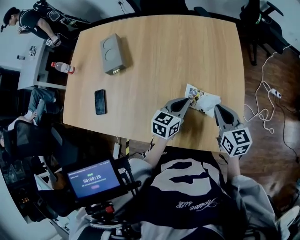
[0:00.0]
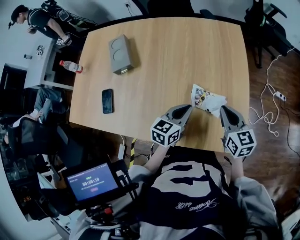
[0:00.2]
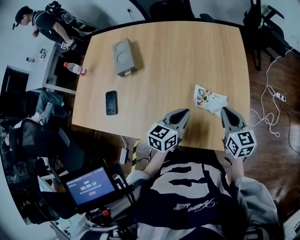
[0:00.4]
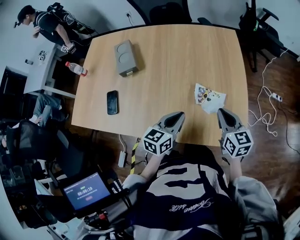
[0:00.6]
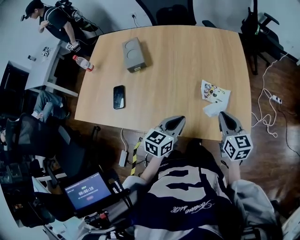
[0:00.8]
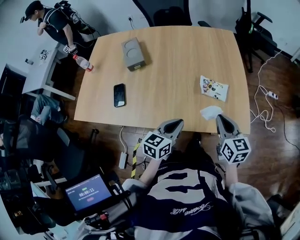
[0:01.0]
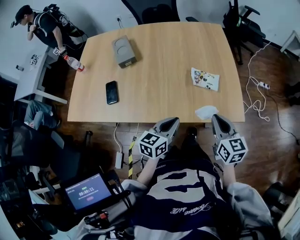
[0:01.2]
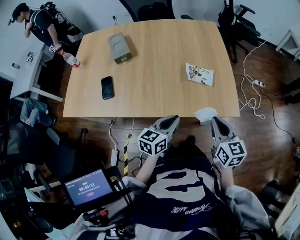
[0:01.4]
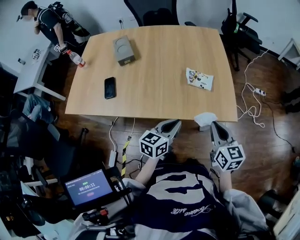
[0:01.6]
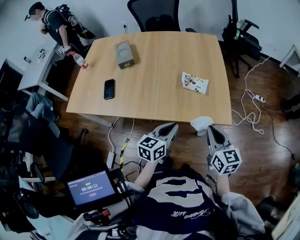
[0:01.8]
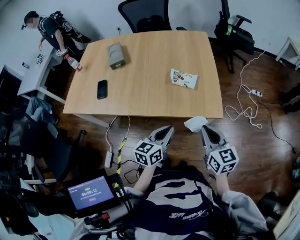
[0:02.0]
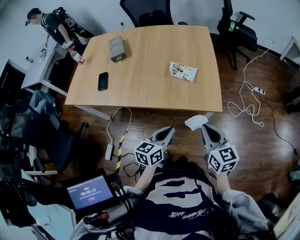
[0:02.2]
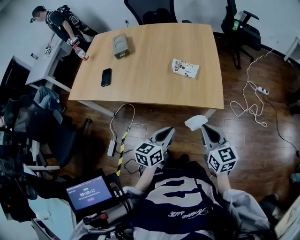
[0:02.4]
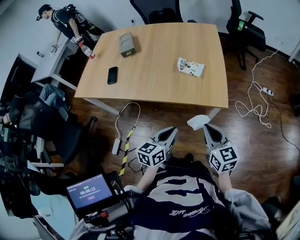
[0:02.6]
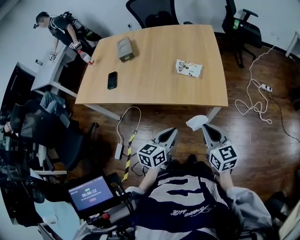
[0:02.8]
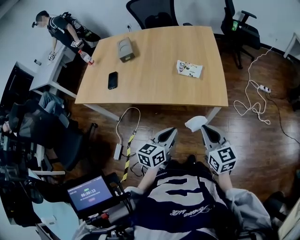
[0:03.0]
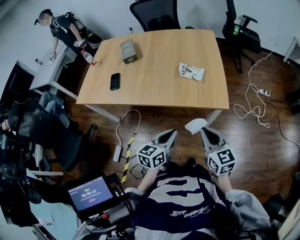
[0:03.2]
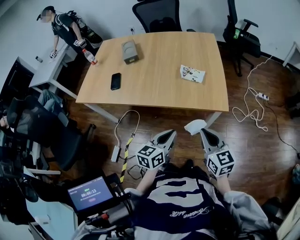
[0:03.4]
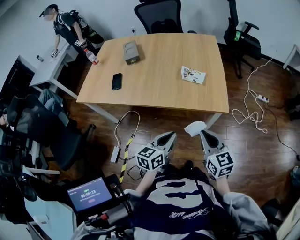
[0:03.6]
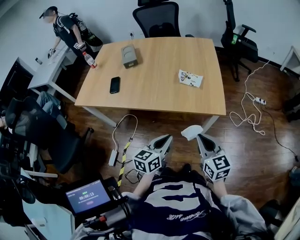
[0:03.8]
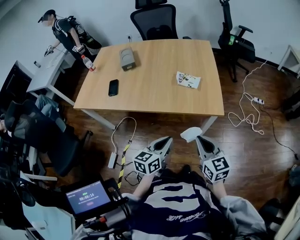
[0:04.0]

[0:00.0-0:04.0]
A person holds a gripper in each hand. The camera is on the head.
0:00.0 to 0:01.4: The two grippers go about 25 cm backward.
0:01.4 to 0:02.6: The two grippers go some 20 cm backward and to the right.
0:02.6 to 0:04.0: The grippers make only small movements.

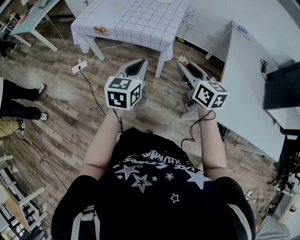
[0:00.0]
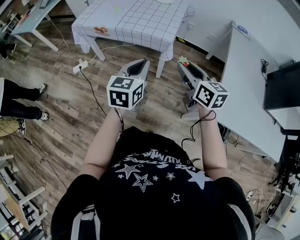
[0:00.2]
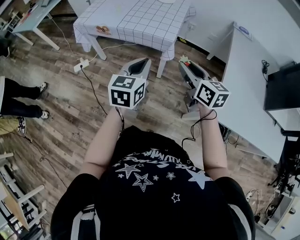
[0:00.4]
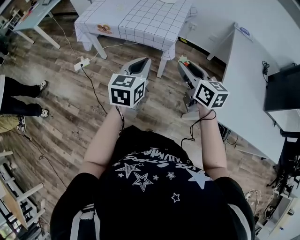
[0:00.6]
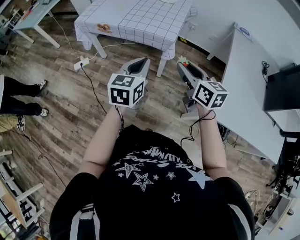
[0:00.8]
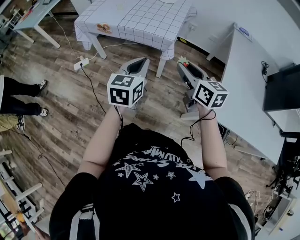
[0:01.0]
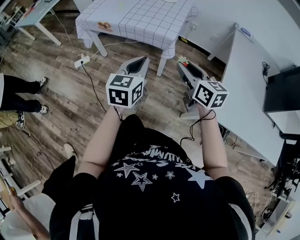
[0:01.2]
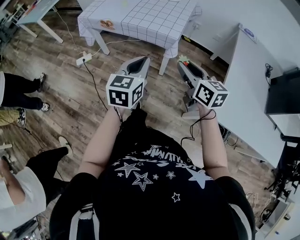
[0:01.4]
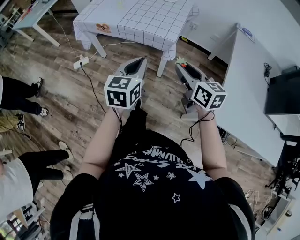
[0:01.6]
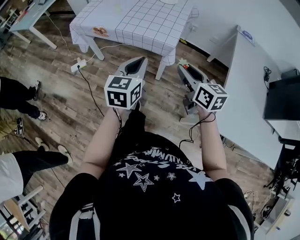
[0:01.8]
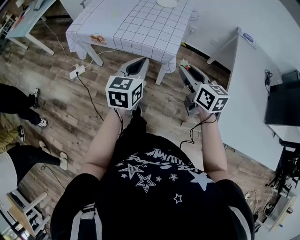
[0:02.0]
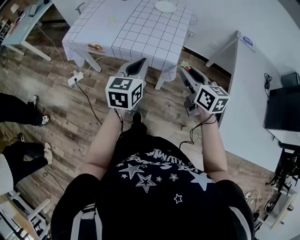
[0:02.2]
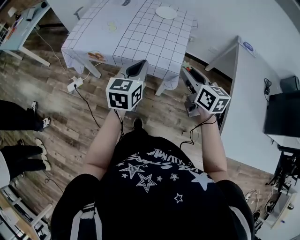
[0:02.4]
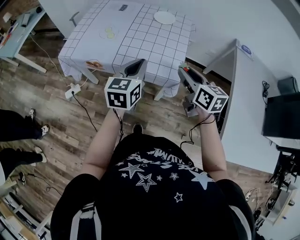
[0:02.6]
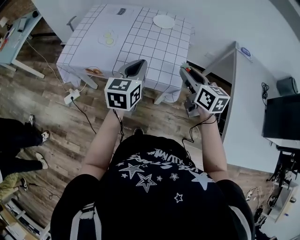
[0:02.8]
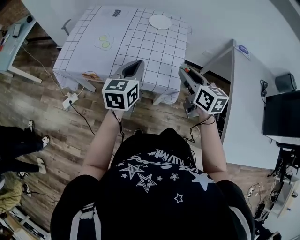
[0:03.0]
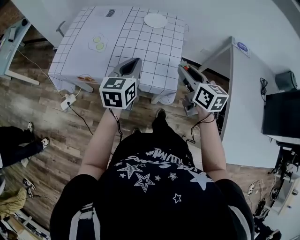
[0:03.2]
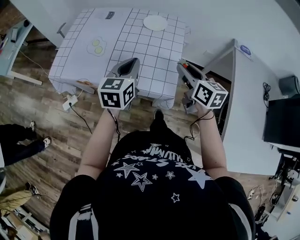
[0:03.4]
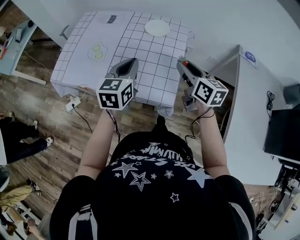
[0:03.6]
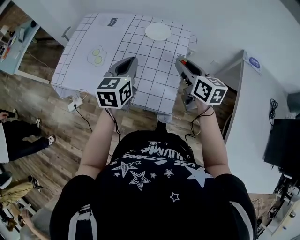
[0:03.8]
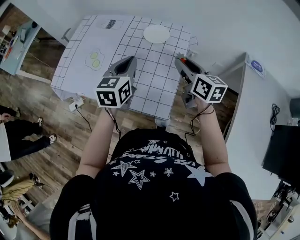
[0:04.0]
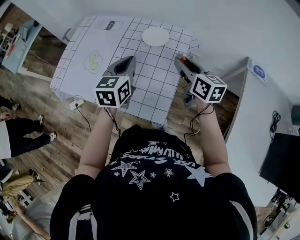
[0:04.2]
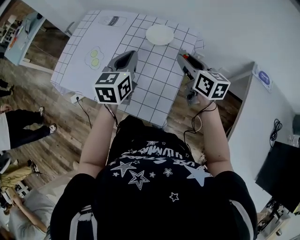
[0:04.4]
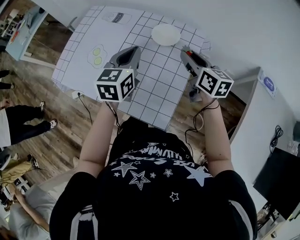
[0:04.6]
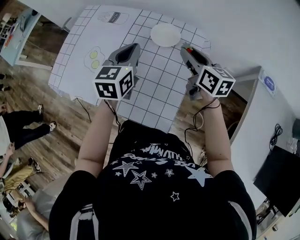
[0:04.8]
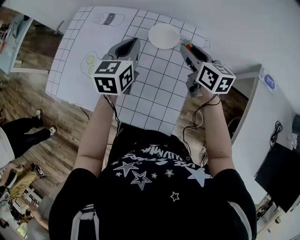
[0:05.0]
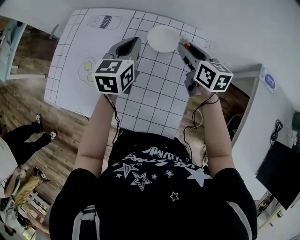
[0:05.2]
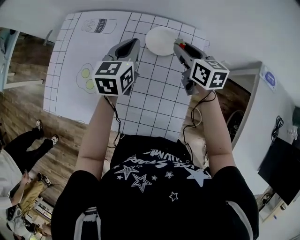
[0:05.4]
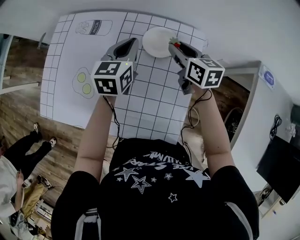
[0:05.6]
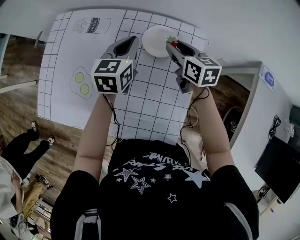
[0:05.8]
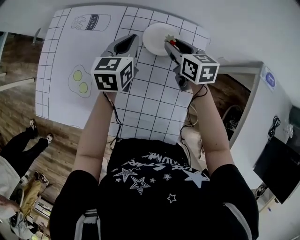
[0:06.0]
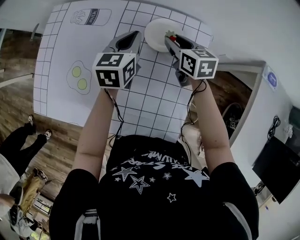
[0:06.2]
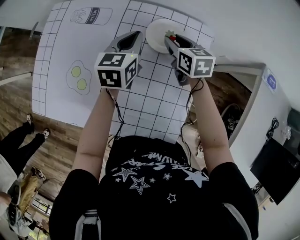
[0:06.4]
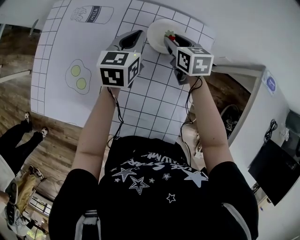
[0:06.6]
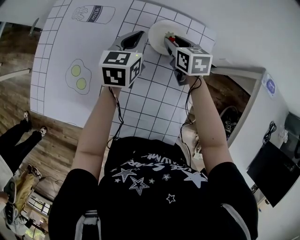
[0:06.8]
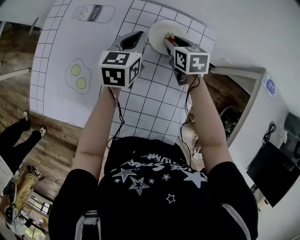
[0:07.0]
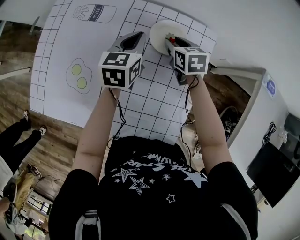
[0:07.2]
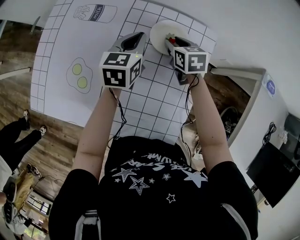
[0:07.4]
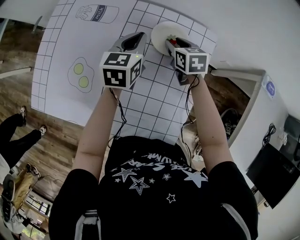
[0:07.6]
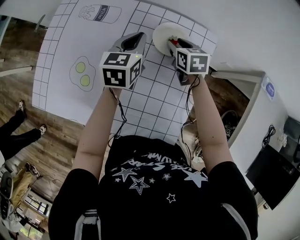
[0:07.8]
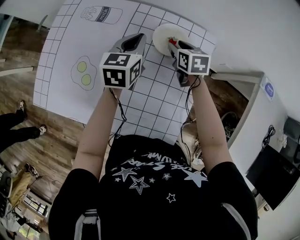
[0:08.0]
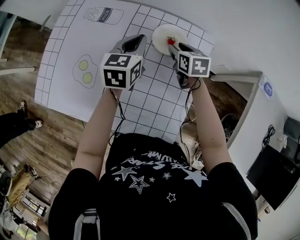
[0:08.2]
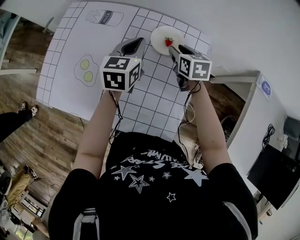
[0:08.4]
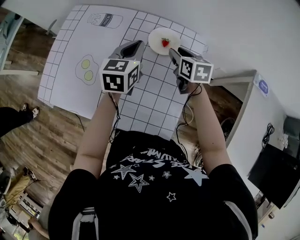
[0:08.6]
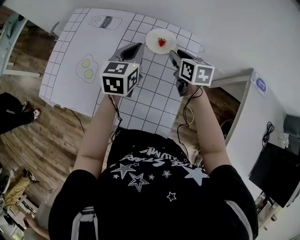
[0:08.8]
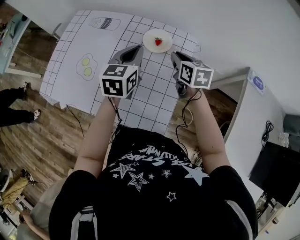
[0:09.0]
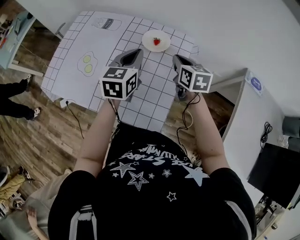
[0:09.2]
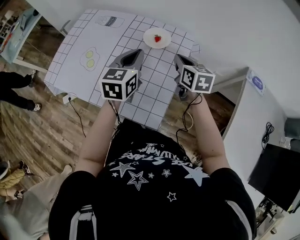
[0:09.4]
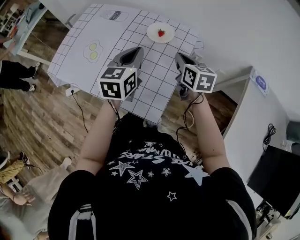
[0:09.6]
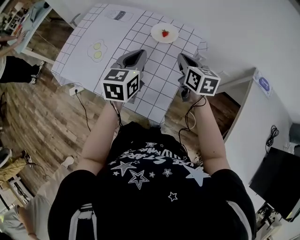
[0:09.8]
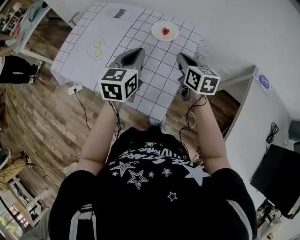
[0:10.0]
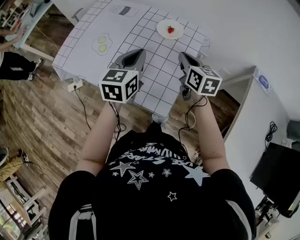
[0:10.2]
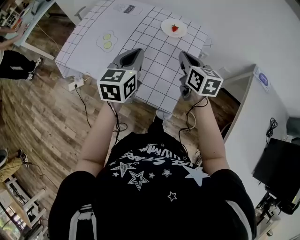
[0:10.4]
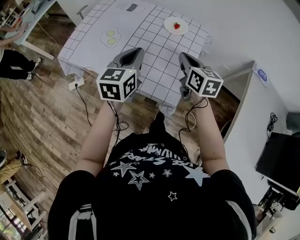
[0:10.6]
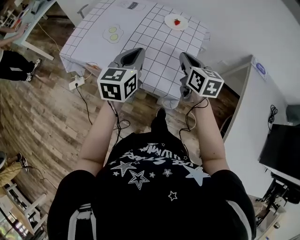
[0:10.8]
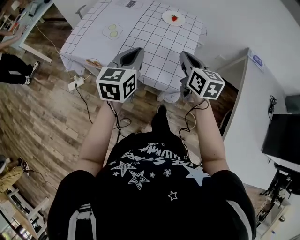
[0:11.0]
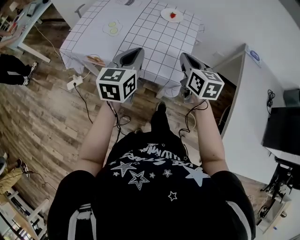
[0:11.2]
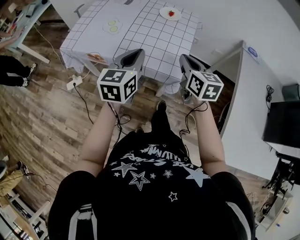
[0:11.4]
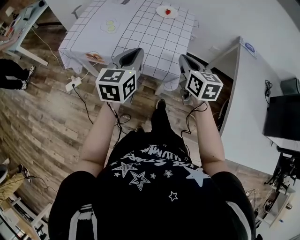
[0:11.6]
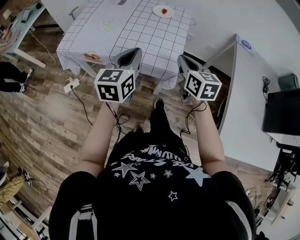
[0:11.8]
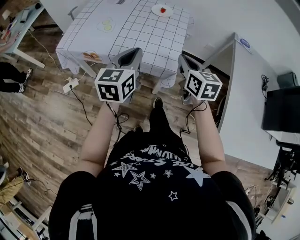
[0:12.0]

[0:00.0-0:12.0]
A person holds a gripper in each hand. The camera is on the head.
0:00.0 to 0:01.6: The grippers make only small movements.
0:01.6 to 0:03.0: The left gripper moves forward and backward over roughly 15 cm, changing direction 2 times, while the right gripper travels upward and to the left by about 15 cm.
0:03.0 to 0:04.4: The right gripper goes some 25 cm forward, while the left gripper is displaced forward and to the right by about 20 cm.
0:04.4 to 0:06.0: Both grippers travel together forward and downward, some 20 cm.
0:06.0 to 0:07.6: The right gripper is displaced downward by about 5 cm.
0:07.6 to 0:09.0: The right gripper is displaced upward, backward and to the right by approximately 20 cm. Meanwhile the left gripper goes some 15 cm backward and upward.
0:09.0 to 0:10.4: The two grippers go about 15 cm backward.
0:10.4 to 0:12.0: Both grippers move backward, some 20 cm.

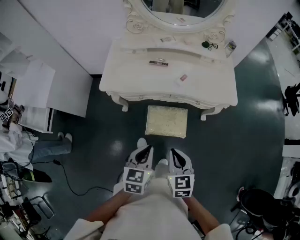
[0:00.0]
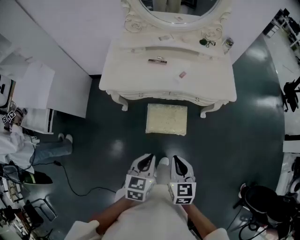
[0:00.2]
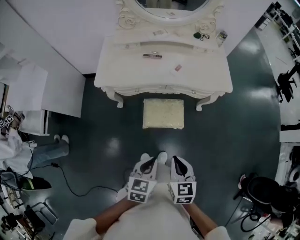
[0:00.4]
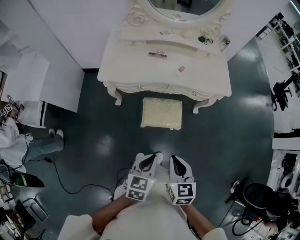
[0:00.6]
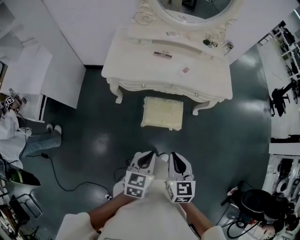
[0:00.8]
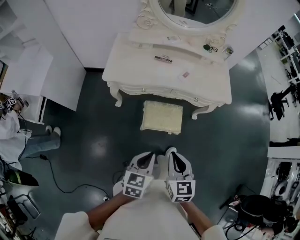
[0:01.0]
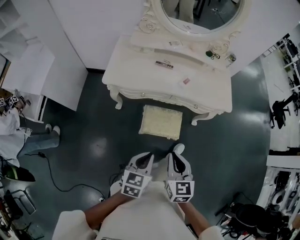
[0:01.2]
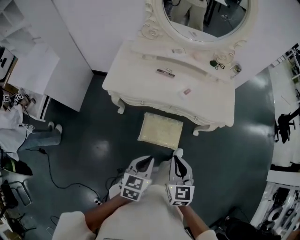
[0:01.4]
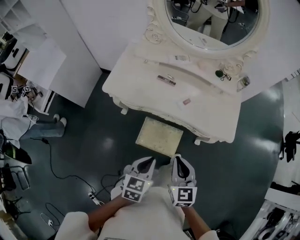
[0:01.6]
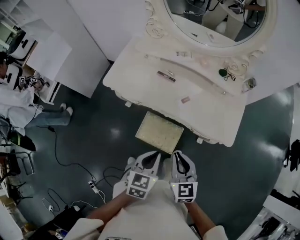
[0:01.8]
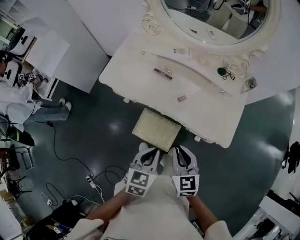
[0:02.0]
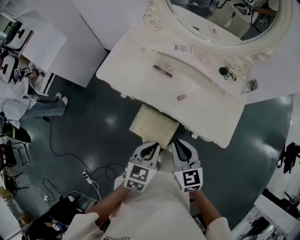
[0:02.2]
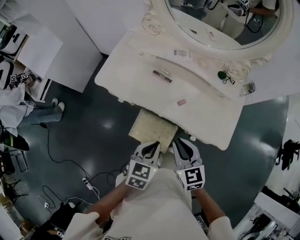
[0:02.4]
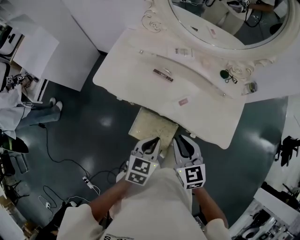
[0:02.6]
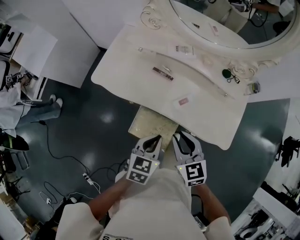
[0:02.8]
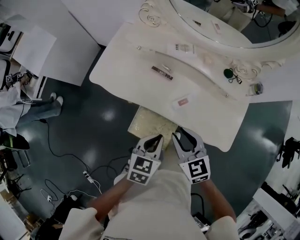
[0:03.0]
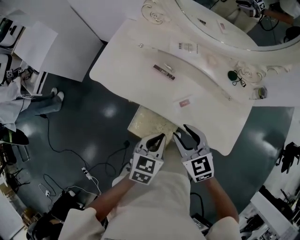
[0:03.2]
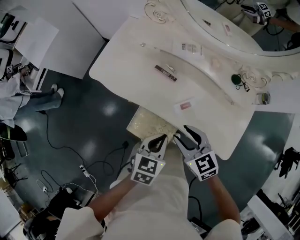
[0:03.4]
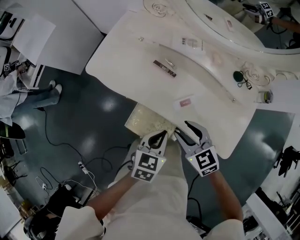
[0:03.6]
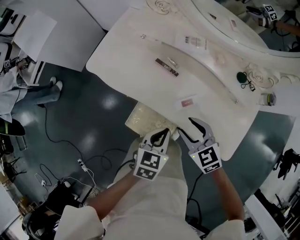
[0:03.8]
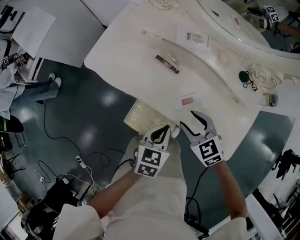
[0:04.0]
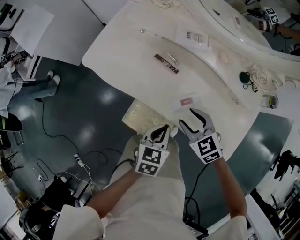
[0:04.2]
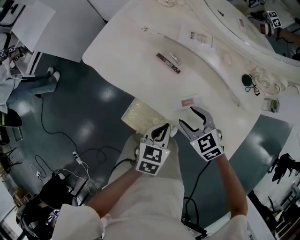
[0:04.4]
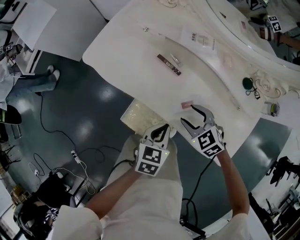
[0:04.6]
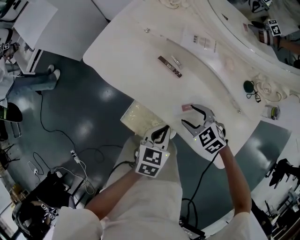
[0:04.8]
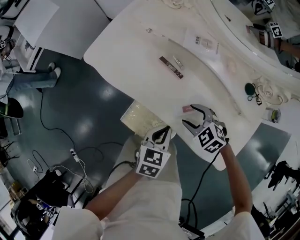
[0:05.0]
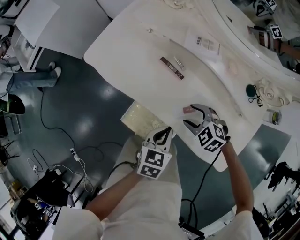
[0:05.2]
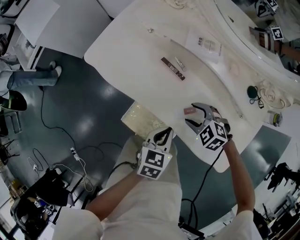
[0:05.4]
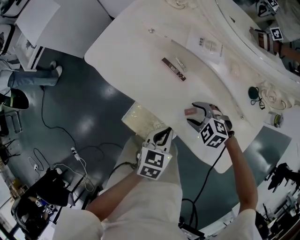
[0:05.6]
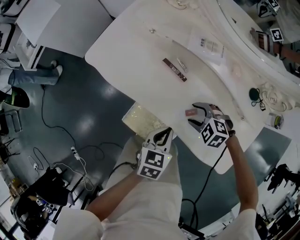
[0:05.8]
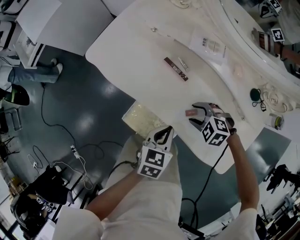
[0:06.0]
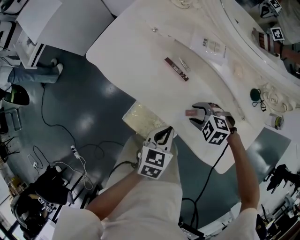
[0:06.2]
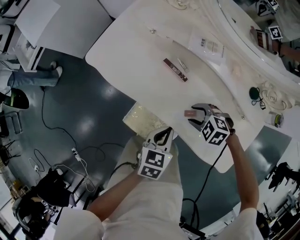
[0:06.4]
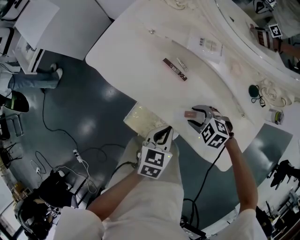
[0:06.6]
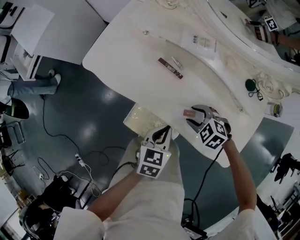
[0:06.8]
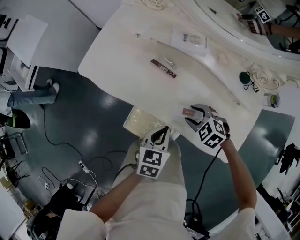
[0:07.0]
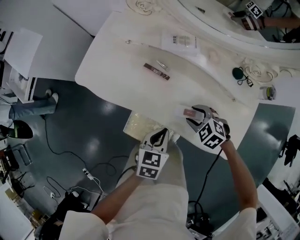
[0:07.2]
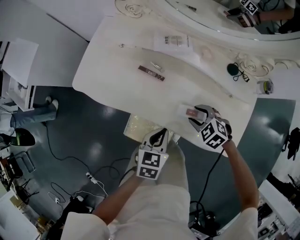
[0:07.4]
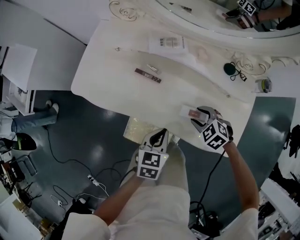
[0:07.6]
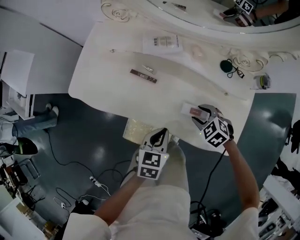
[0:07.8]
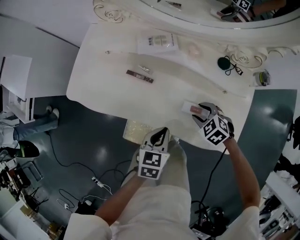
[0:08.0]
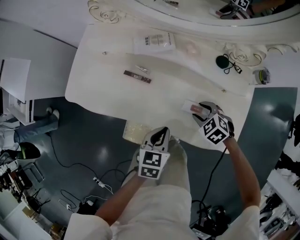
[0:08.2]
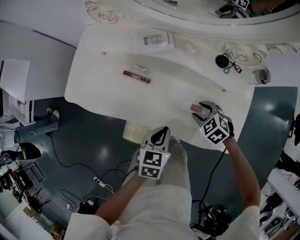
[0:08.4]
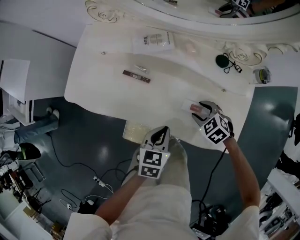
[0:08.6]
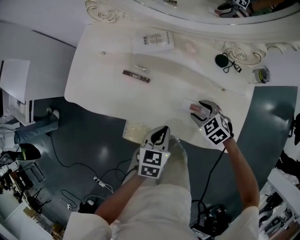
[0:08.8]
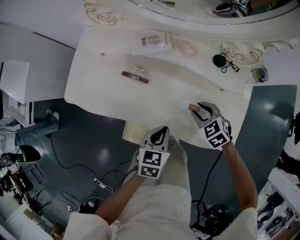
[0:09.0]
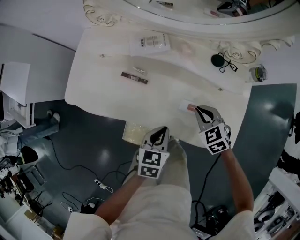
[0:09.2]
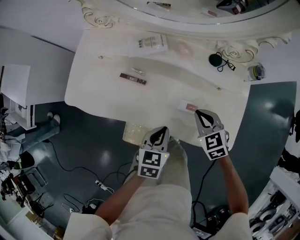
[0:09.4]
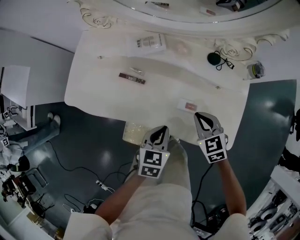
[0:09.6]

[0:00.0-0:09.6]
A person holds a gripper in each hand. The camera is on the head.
0:00.0 to 0:01.6: The left gripper moves to the right and forward, approximately 10 cm; the right gripper shifts roughly 15 cm forward and to the right.
0:01.6 to 0:03.2: The left gripper is displaced forward and to the right by roughly 20 cm. The right gripper moves forward, approximately 20 cm, rotates roughly 30 degrees, and opens.
0:03.2 to 0:04.8: The right gripper goes about 15 cm downward and forward, turns by roughly 40 degrees, and opens; the left gripper goes approximately 10 cm downward.
0:04.8 to 0:06.4: The right gripper rotates about 20 degrees.
0:06.4 to 0:08.0: The right gripper ends up some 10 cm from where it was, and changes its angle by approximately 40 degrees. The left gripper moves approximately 5 cm.
0:08.0 to 0:09.6: The right gripper is displaced upward by roughly 5 cm, turns by roughly 30 degrees, and closes its fingers.
